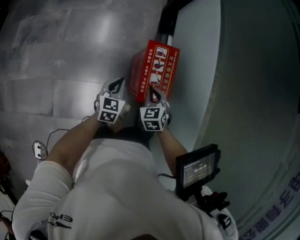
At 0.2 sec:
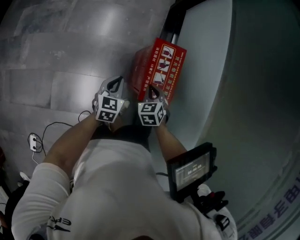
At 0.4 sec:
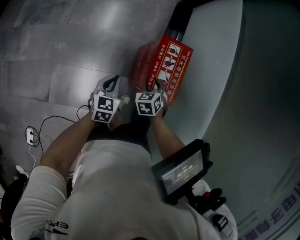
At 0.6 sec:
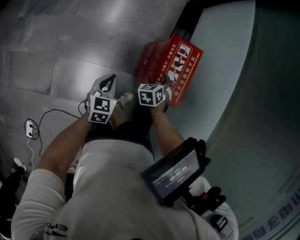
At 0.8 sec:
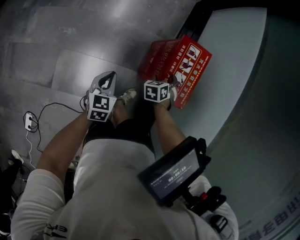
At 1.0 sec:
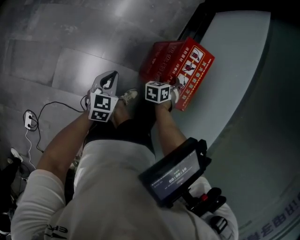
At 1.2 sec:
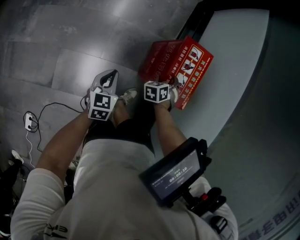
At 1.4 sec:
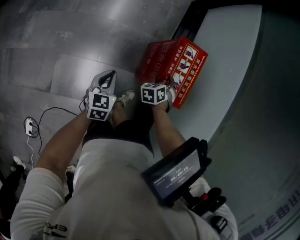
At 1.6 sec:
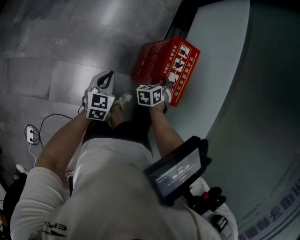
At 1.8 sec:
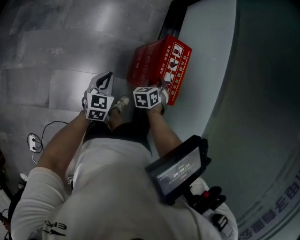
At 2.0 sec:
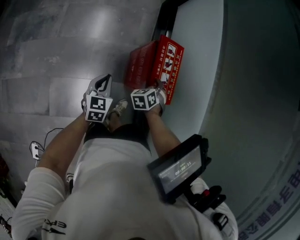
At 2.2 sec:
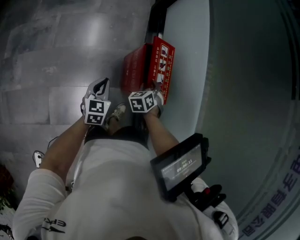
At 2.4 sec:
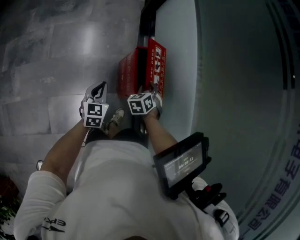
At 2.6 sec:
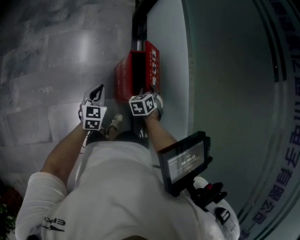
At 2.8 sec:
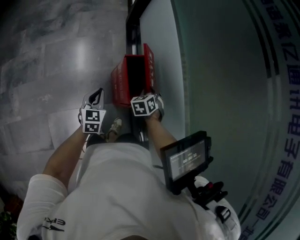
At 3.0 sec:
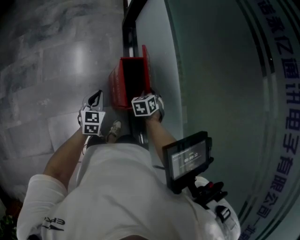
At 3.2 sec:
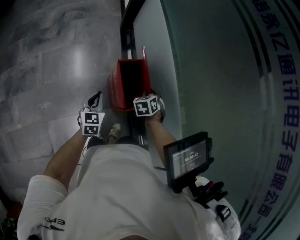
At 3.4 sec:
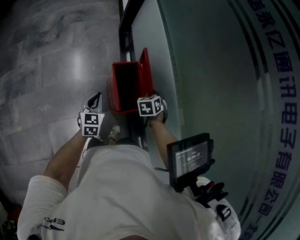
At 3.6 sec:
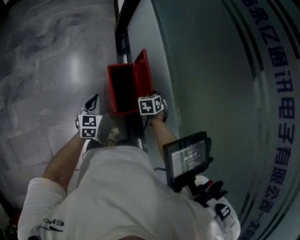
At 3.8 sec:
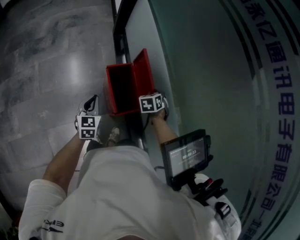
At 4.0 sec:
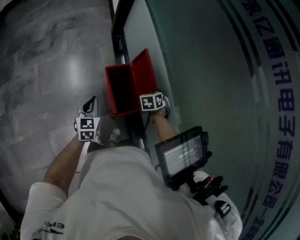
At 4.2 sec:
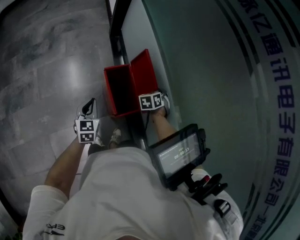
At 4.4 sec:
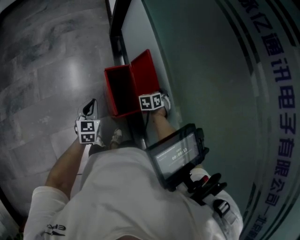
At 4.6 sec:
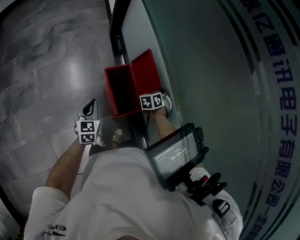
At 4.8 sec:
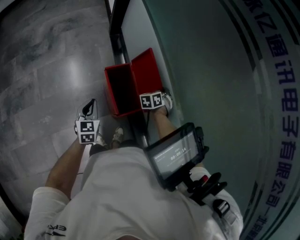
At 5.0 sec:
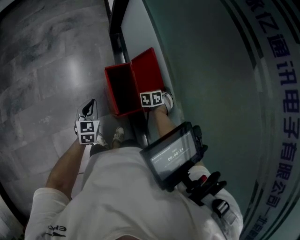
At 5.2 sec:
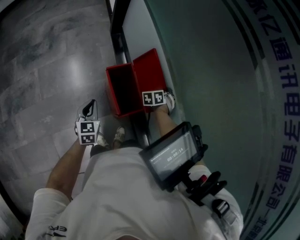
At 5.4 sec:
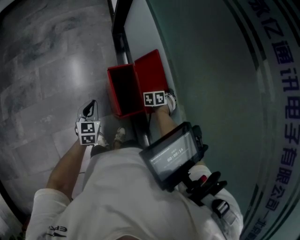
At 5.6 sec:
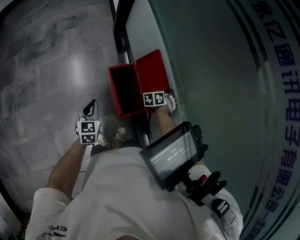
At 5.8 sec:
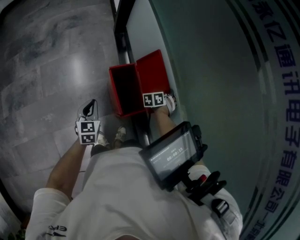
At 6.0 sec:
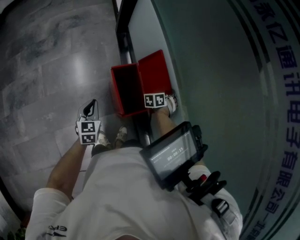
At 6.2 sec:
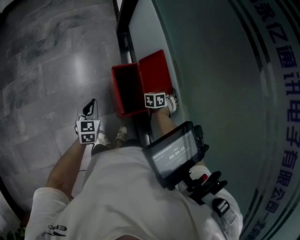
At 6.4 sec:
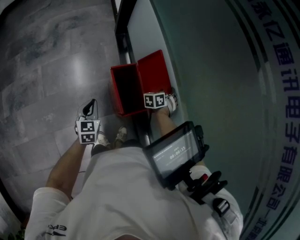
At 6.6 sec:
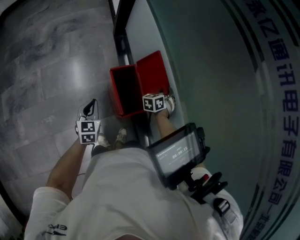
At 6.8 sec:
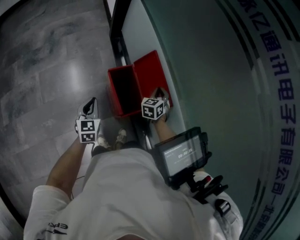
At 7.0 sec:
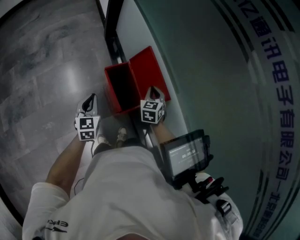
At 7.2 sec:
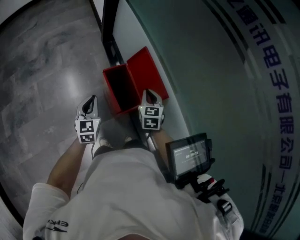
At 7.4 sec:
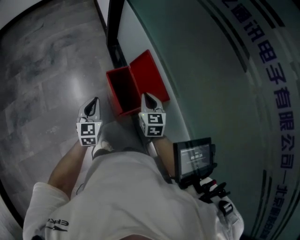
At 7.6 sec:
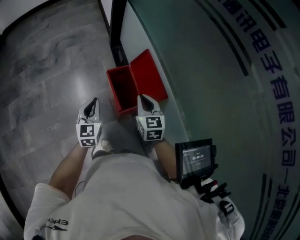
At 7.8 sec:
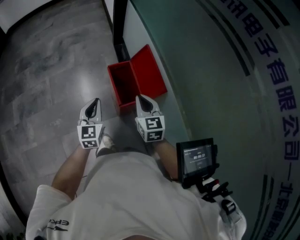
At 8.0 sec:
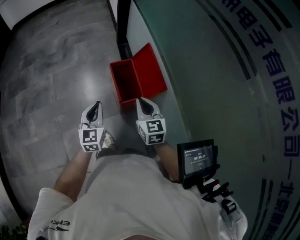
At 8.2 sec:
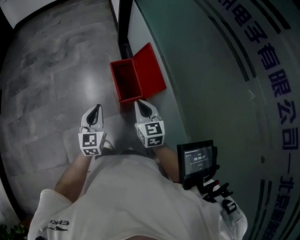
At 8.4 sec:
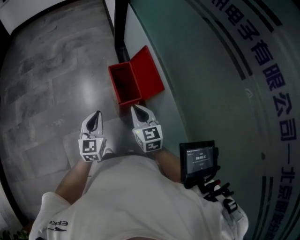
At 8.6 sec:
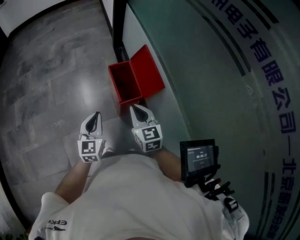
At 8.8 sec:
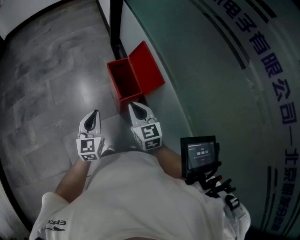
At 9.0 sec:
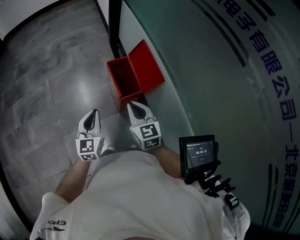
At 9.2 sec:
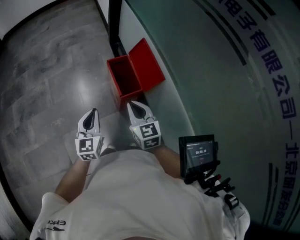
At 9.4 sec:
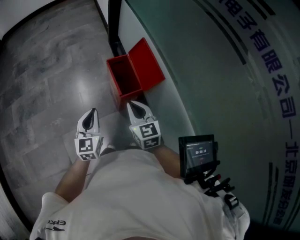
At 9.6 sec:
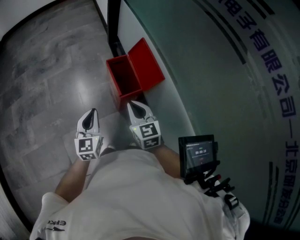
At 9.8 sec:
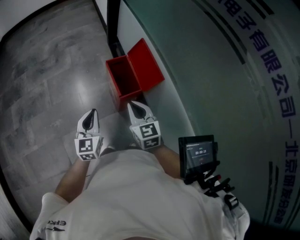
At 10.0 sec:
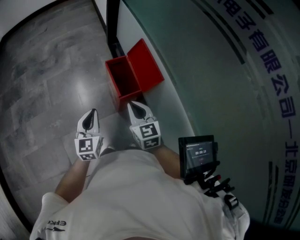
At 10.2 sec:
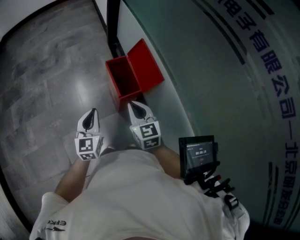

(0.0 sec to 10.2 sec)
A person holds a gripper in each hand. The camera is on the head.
0.0 sec - 1.4 sec: The right gripper is displaced downward by about 15 cm, rotates approximately 30 degrees, and opens up, while the left gripper is displaced to the left, downward and backward by about 15 cm.
1.4 sec - 3.0 sec: The right gripper goes roughly 20 cm upward and to the right, and closes, while the left gripper shifts approximately 20 cm upward, forward and to the right.
3.0 sec - 4.4 sec: The right gripper is displaced to the right and forward by roughly 10 cm.
4.4 sec - 5.8 sec: The right gripper opens.
5.8 sec - 7.2 sec: The right gripper moves upward, backward and to the left, approximately 20 cm, swivels some 50 degrees, and closes its fingers. The left gripper travels upward by approximately 10 cm.
7.2 sec - 8.8 sec: The right gripper moves backward and upward, about 20 cm, and swivels about 30 degrees, while the left gripper goes approximately 20 cm backward.
8.8 sec - 10.2 sec: The grippers make only small movements.

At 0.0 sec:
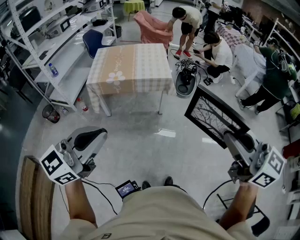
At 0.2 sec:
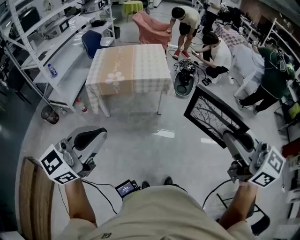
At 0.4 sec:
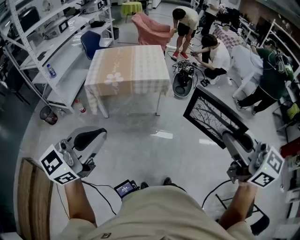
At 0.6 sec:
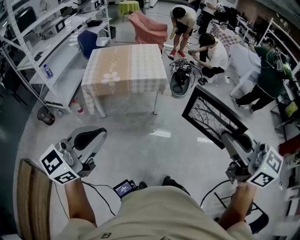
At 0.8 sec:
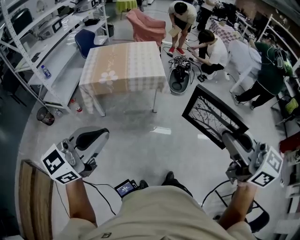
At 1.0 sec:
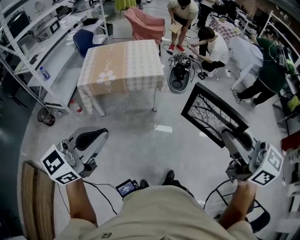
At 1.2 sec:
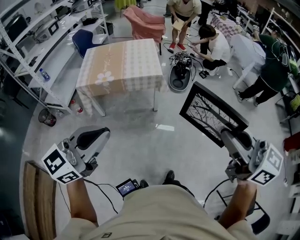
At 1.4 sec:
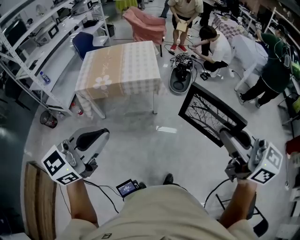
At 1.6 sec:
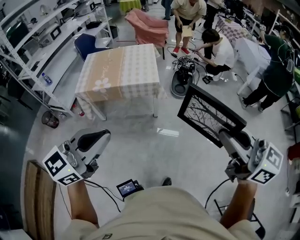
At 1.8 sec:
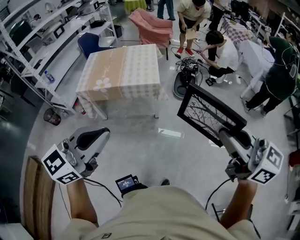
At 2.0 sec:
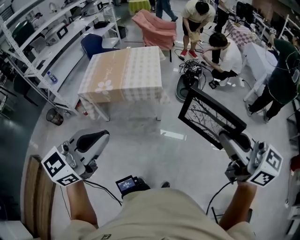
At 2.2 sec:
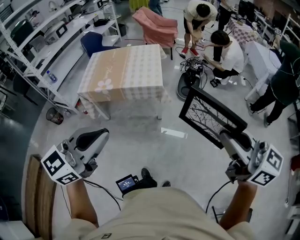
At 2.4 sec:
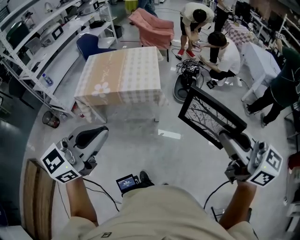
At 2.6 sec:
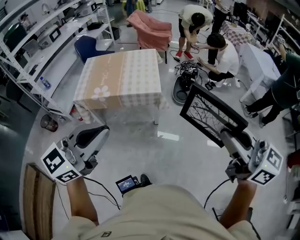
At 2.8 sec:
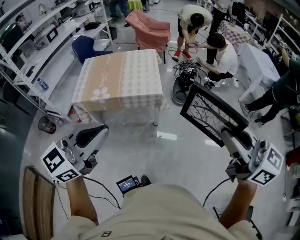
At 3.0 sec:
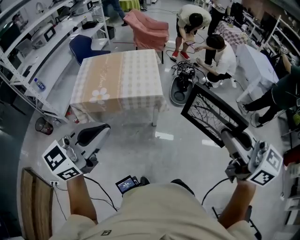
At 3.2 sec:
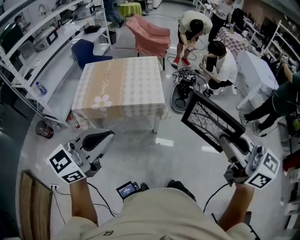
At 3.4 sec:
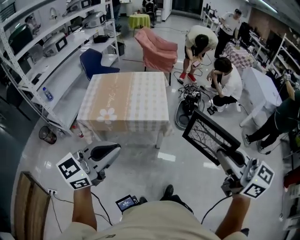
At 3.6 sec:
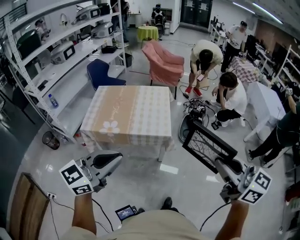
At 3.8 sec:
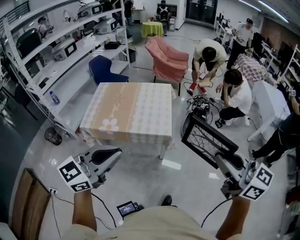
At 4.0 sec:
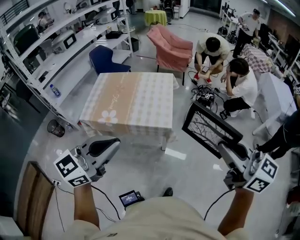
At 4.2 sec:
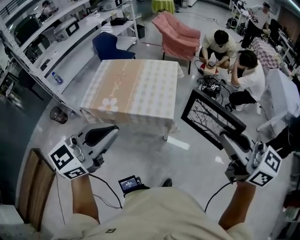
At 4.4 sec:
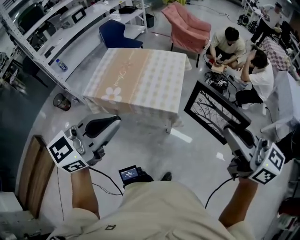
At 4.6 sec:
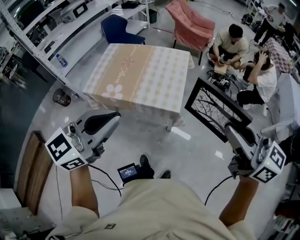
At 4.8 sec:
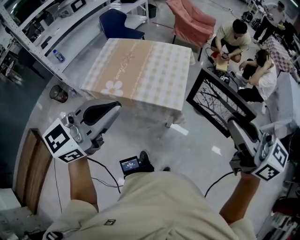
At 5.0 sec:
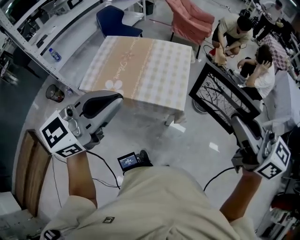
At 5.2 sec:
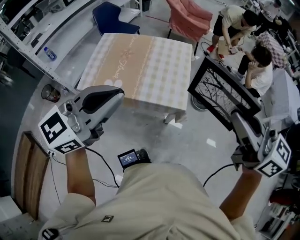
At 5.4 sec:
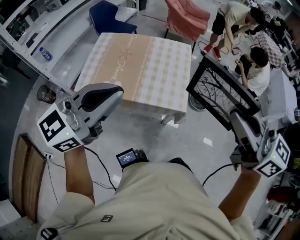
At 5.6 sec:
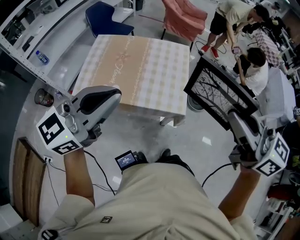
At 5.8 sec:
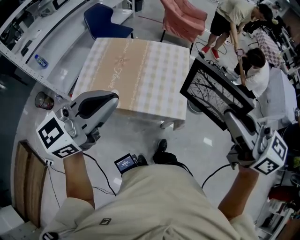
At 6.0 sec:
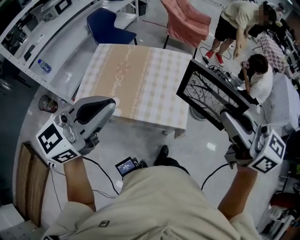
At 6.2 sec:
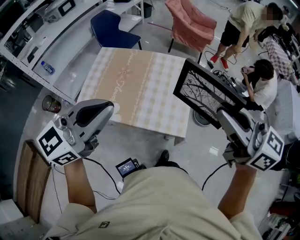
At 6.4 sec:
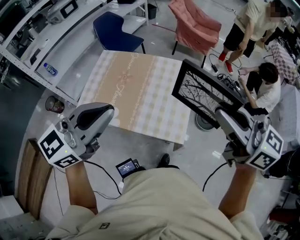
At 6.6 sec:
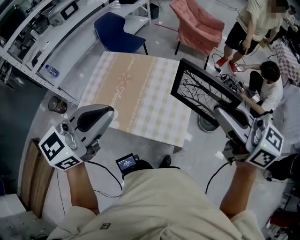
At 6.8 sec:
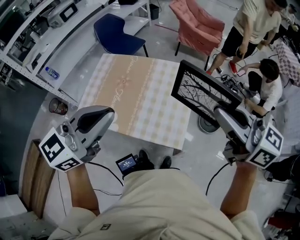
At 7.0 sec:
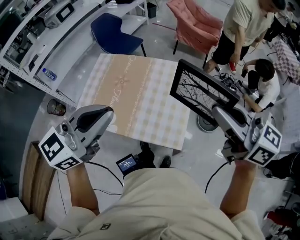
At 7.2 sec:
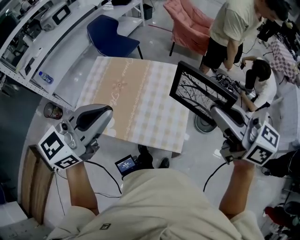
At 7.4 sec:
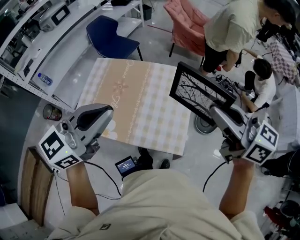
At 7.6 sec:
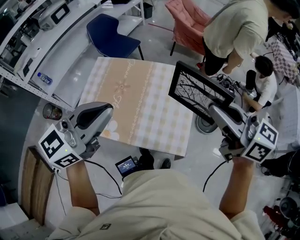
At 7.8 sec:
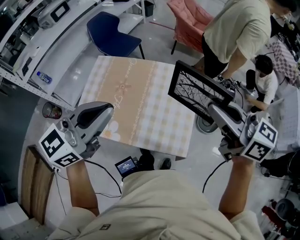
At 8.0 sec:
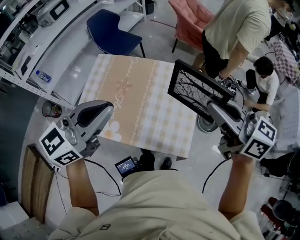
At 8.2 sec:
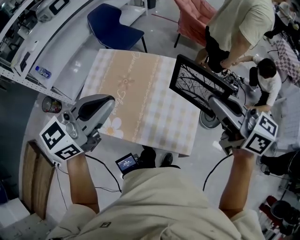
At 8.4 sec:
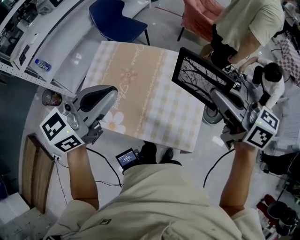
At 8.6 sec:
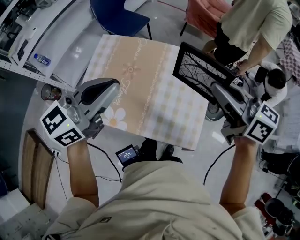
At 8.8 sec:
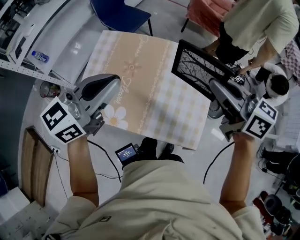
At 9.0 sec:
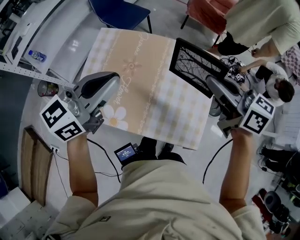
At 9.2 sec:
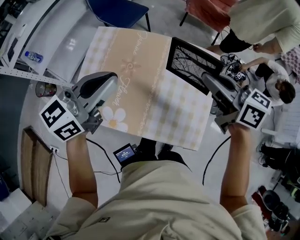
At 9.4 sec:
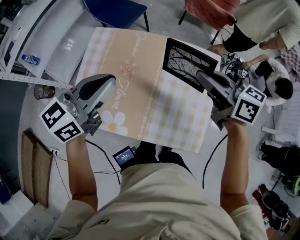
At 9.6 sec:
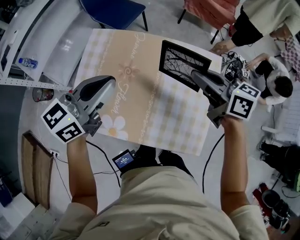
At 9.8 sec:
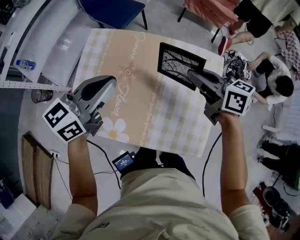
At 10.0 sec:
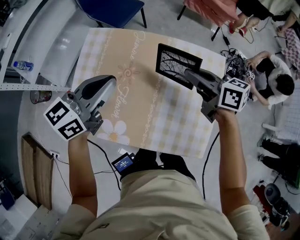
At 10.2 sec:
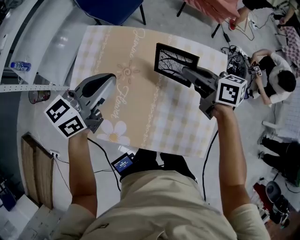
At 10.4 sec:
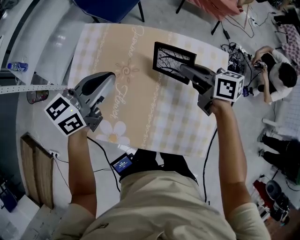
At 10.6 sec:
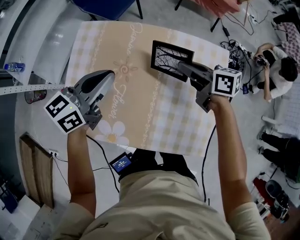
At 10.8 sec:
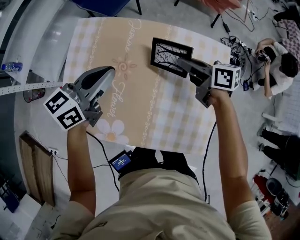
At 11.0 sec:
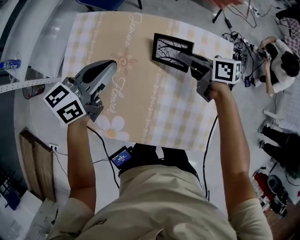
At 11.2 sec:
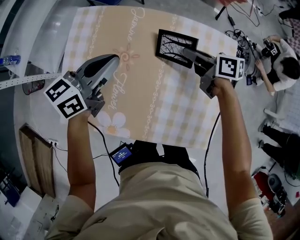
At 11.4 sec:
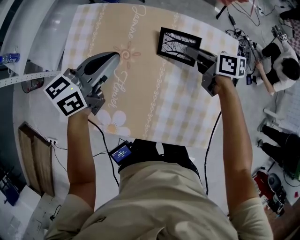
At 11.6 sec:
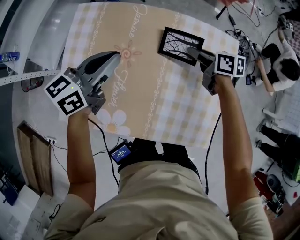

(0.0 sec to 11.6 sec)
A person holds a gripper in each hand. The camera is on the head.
0.0 sec - 1.4 sec: Both grippers travel together to the right and forward, about 15 cm.
1.4 sec - 2.8 sec: Both grippers travel together forward, approximately 15 cm.
2.8 sec - 4.4 sec: The two grippers go approximately 25 cm forward.
4.4 sec - 5.8 sec: Both grippers move forward and to the left, about 25 cm.
5.8 sec - 7.2 sec: The left gripper heads forward and to the right, covering roughly 15 cm. Meanwhile the right gripper heads forward, covering some 20 cm.
7.2 sec - 8.8 sec: Both grippers travel together forward, to the left and downward, about 20 cm.
8.8 sec - 10.2 sec: The grippers both shift downward and forward by some 25 cm.
10.2 sec - 11.6 sec: The left gripper shifts roughly 10 cm downward, while the right gripper heads downward, covering roughly 15 cm.

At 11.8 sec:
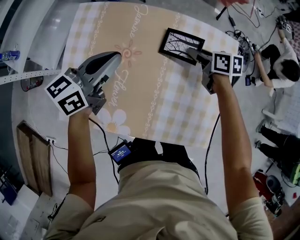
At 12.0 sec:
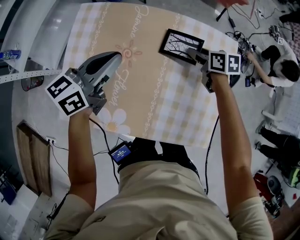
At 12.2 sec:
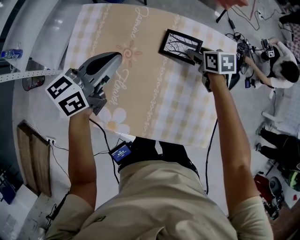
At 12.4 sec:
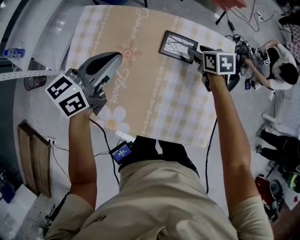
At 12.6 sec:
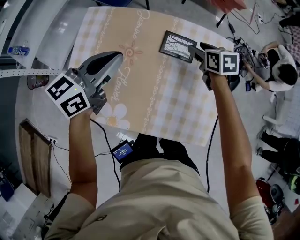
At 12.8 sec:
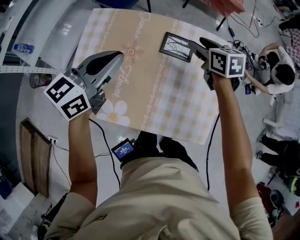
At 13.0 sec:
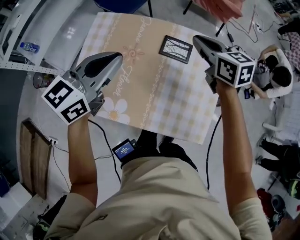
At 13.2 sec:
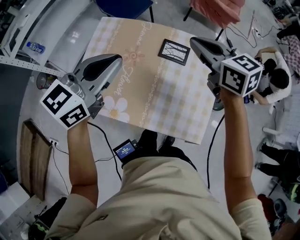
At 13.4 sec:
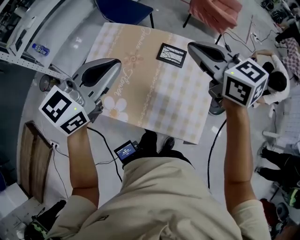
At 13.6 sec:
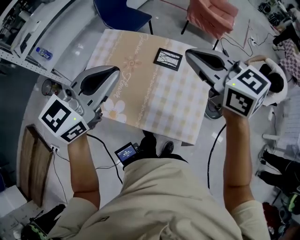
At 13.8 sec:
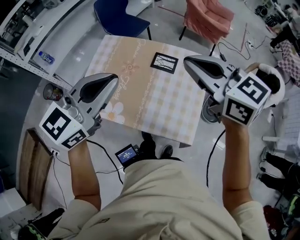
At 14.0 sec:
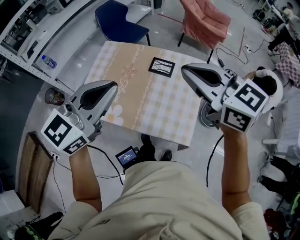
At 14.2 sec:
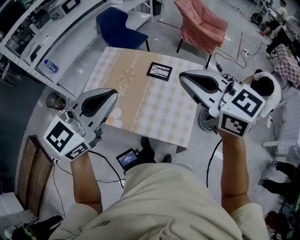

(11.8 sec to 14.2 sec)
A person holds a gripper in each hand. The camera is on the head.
11.8 sec - 13.0 sec: The right gripper shifts roughly 20 cm upward, rotates approximately 30 degrees, and closes. The left gripper heads upward and backward, covering about 15 cm.
13.0 sec - 14.2 sec: The grippers both shift backward and upward by approximately 30 cm. The right gripper changes its angle by approximately 30 degrees.
